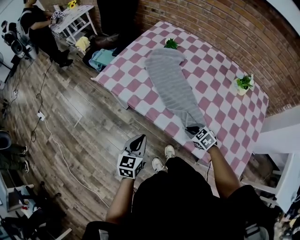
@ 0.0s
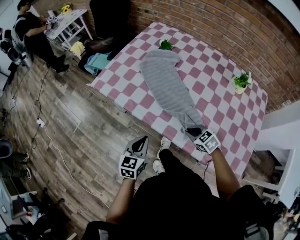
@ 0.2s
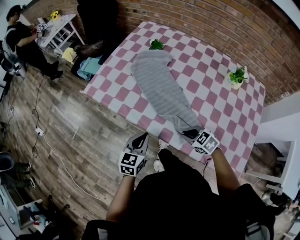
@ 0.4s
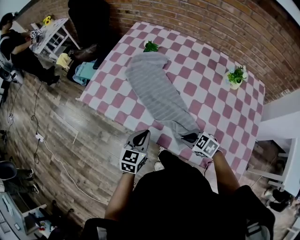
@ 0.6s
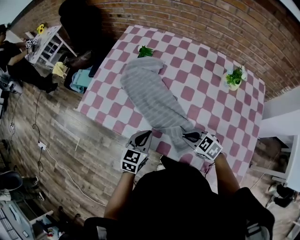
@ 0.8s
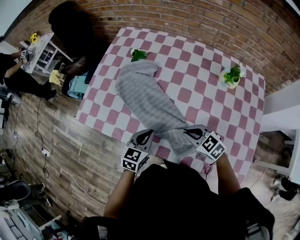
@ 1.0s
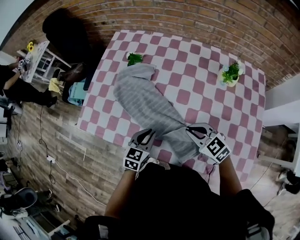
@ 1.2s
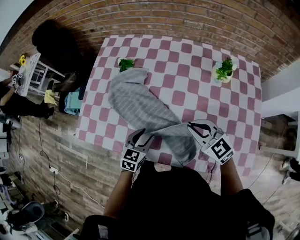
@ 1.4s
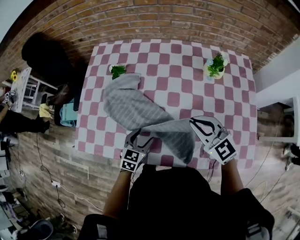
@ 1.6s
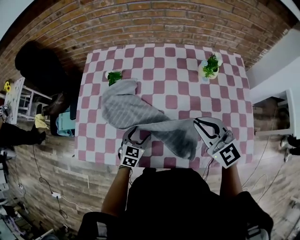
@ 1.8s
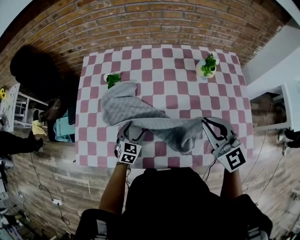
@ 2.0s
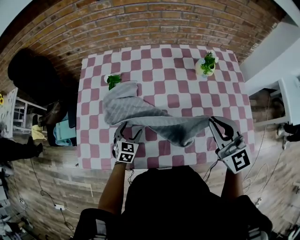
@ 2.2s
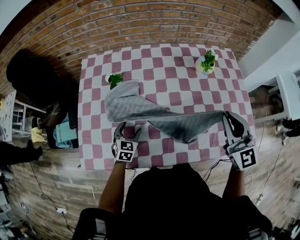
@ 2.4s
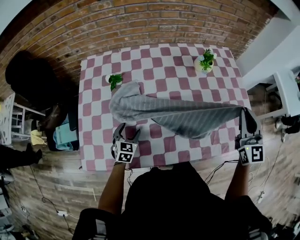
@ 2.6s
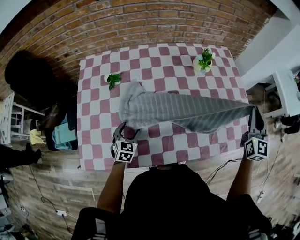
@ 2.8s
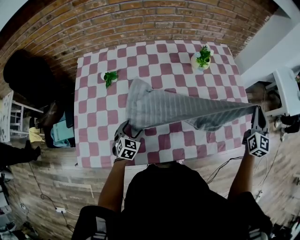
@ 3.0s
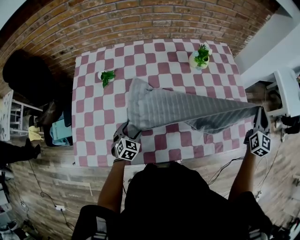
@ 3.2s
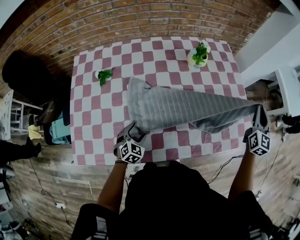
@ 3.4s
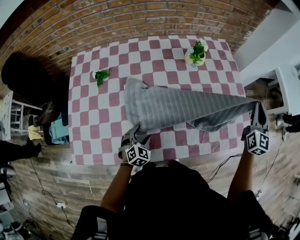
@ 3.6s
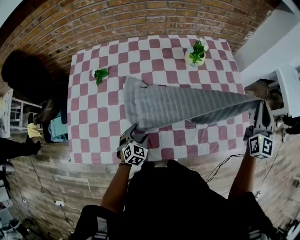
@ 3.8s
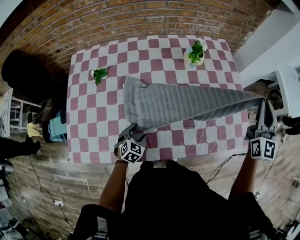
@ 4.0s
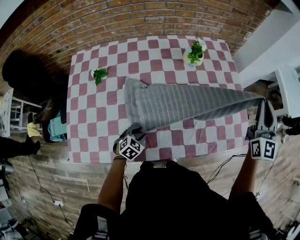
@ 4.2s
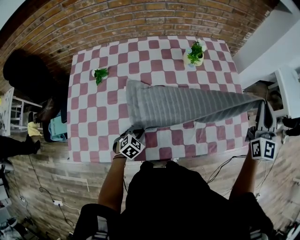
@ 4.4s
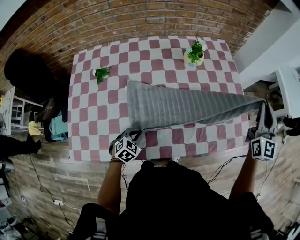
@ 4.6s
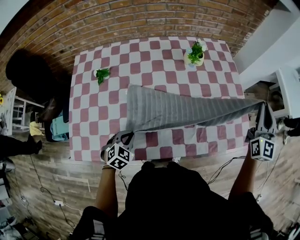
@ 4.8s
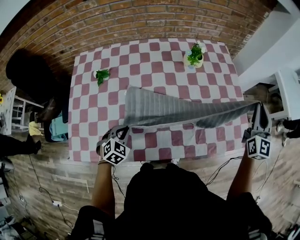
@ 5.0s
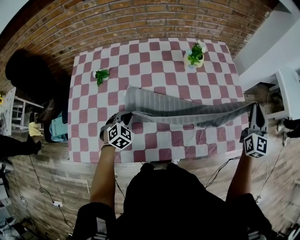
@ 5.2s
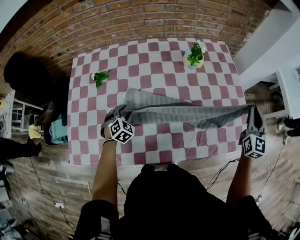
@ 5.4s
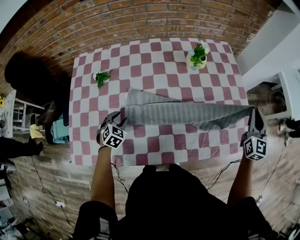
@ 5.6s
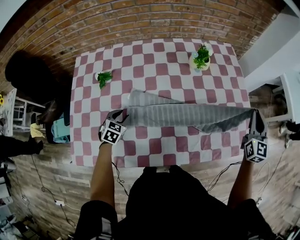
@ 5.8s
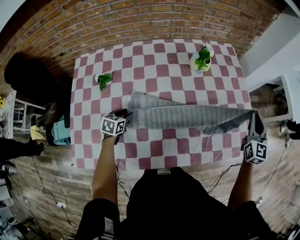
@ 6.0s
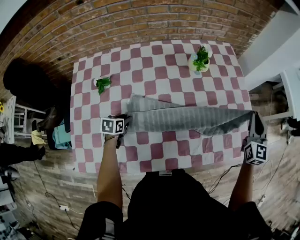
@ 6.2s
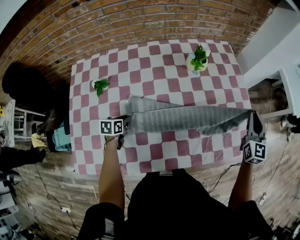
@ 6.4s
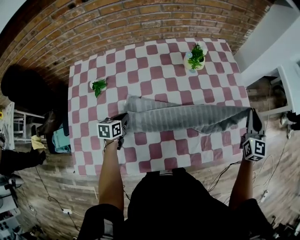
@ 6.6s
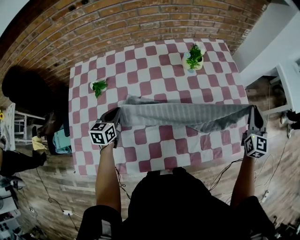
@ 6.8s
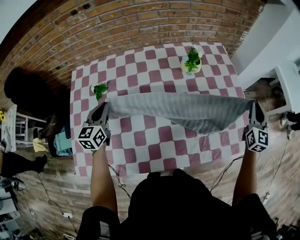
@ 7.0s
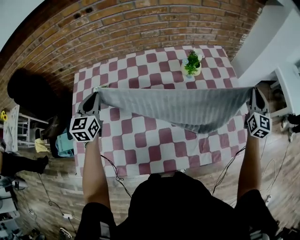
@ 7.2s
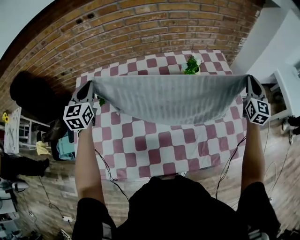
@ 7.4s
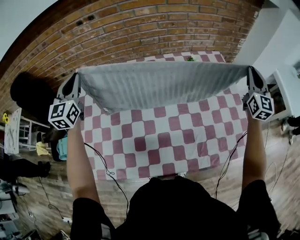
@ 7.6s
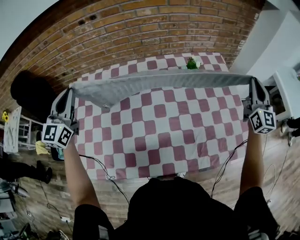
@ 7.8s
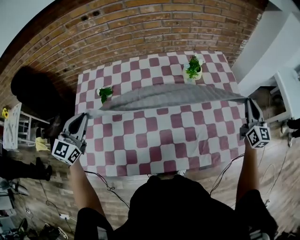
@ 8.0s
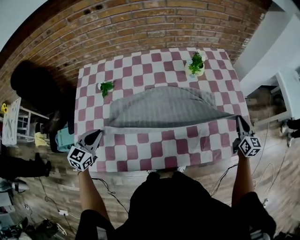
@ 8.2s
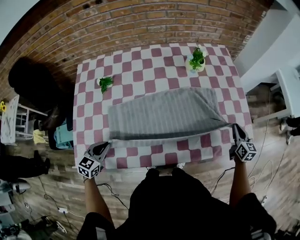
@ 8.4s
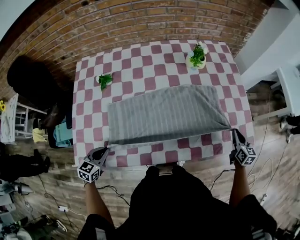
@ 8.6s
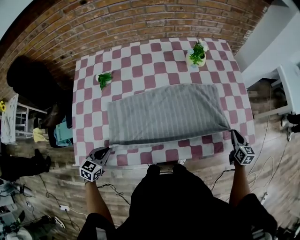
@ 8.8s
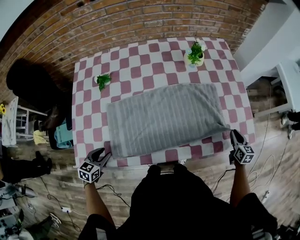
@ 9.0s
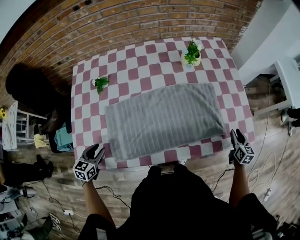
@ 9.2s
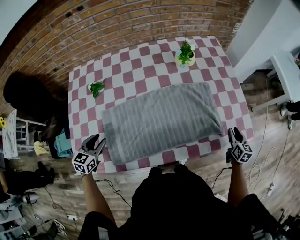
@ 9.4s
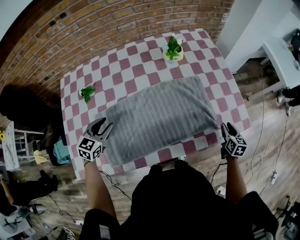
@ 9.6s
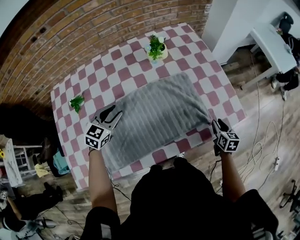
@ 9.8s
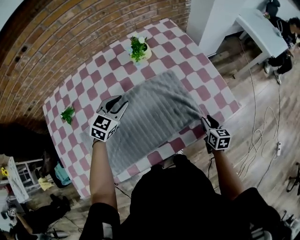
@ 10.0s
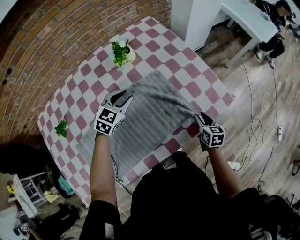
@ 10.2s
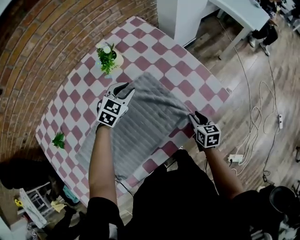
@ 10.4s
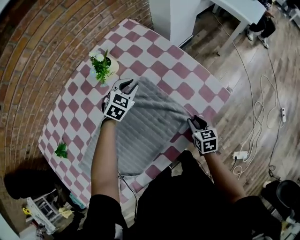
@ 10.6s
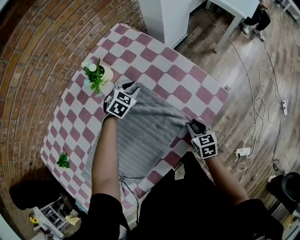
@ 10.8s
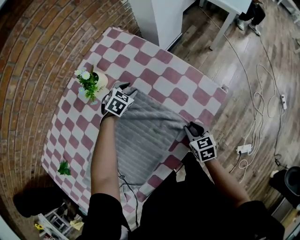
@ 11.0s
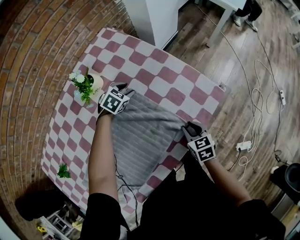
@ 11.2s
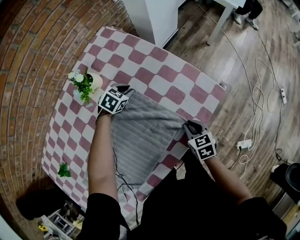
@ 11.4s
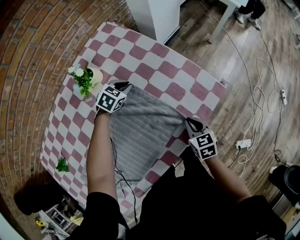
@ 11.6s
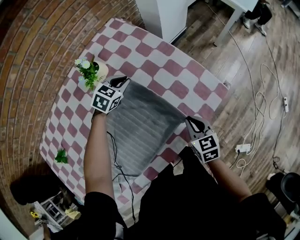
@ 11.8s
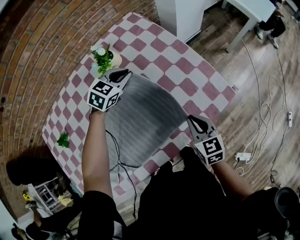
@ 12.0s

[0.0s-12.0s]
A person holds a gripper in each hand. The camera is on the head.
0.0s to 1.6s: The right gripper goes some 20 cm upward, and tips its fingers upward by some 40 degrees; the left gripper moves approximately 30 cm, swivels roughly 40 degrees, and opens up.
1.6s to 3.0s: The left gripper moves some 10 cm. The right gripper moves approximately 30 cm, and swivels roughly 70 degrees.
3.0s to 4.4s: The right gripper goes some 5 cm upward; the left gripper goes some 10 cm to the right, changes its angle by about 20 degrees, and closes its fingers.
4.4s to 6.0s: The right gripper goes roughly 10 cm downward; the left gripper shifts some 20 cm to the left and forward, changes its angle by about 30 degrees, and opens up.
6.0s to 7.6s: The left gripper travels upward by approximately 40 cm, tips its fingers upward by some 50 degrees, and closes up. The right gripper goes about 20 cm forward and upward.
7.6s to 9.0s: Both grippers move downward and backward, about 50 cm. The right gripper tilts its fingers roughly 40 degrees downward; the left gripper tilts its fingers about 40 degrees downward, and opens its fingers.
9.0s to 10.4s: The left gripper shifts by roughly 60 cm, and twists some 50 degrees clockwise, seen from behind, while the right gripper moves approximately 5 cm, turns by roughly 20 degrees, and opens its fingers.
10.4s to 12.0s: The left gripper is displaced forward by about 5 cm, and travels downward and back again, some 10 cm each way. The right gripper is displaced upward by roughly 10 cm, turns by about 20 degrees, and closes up.

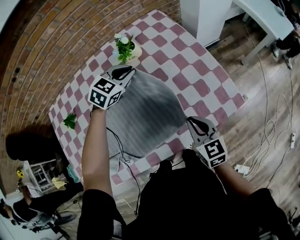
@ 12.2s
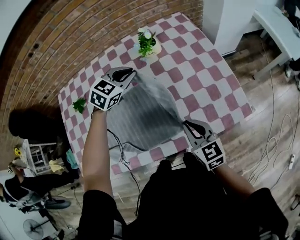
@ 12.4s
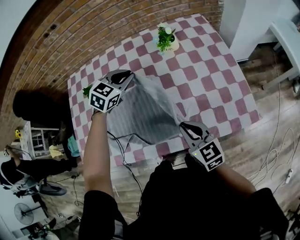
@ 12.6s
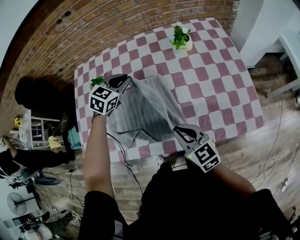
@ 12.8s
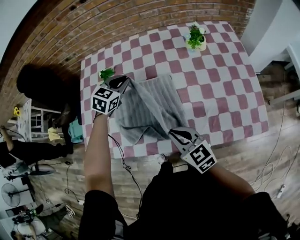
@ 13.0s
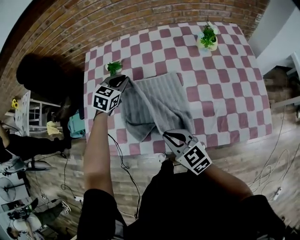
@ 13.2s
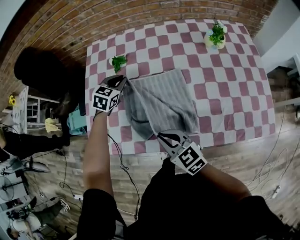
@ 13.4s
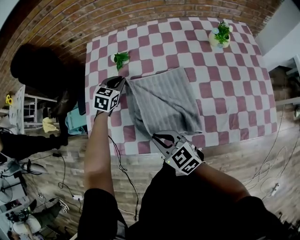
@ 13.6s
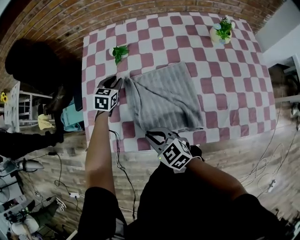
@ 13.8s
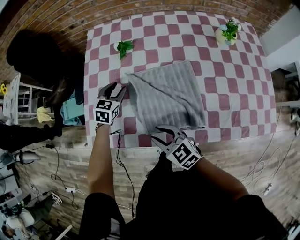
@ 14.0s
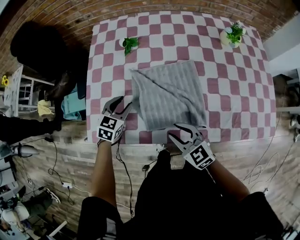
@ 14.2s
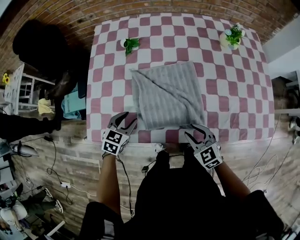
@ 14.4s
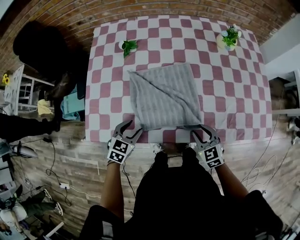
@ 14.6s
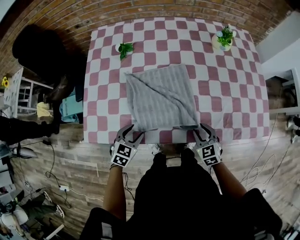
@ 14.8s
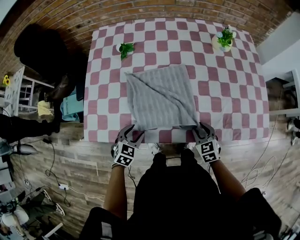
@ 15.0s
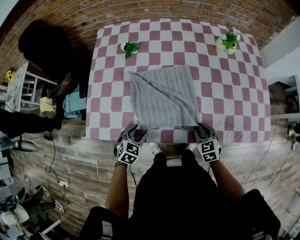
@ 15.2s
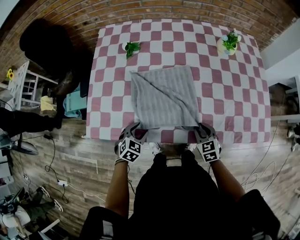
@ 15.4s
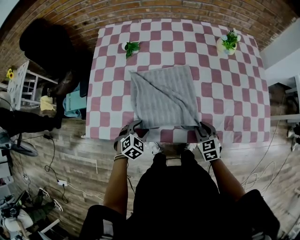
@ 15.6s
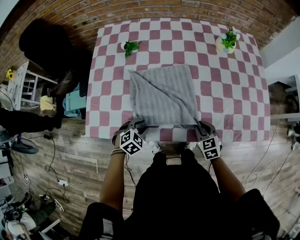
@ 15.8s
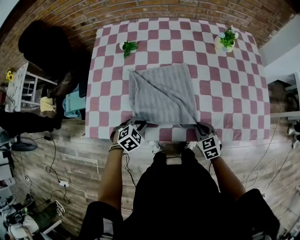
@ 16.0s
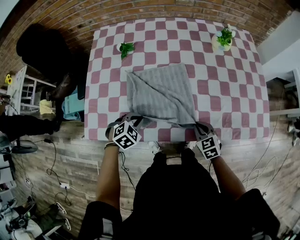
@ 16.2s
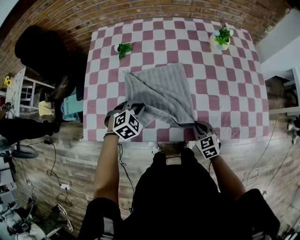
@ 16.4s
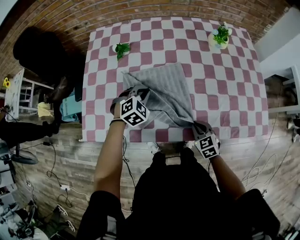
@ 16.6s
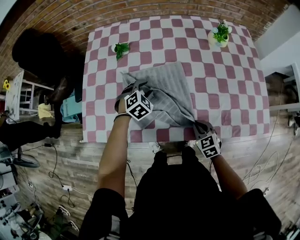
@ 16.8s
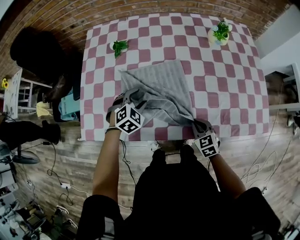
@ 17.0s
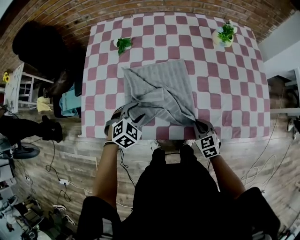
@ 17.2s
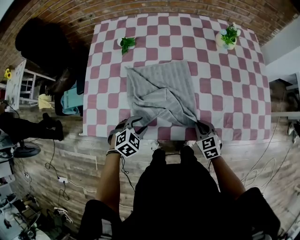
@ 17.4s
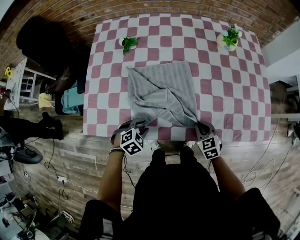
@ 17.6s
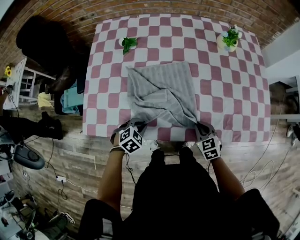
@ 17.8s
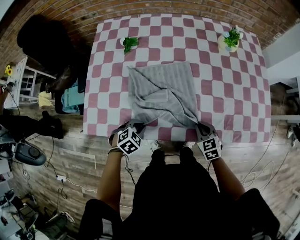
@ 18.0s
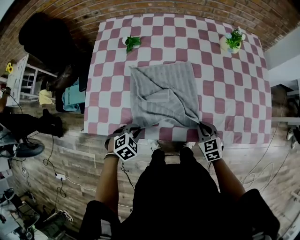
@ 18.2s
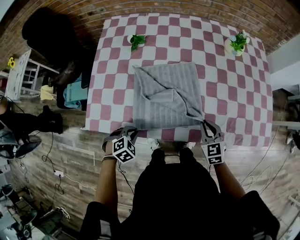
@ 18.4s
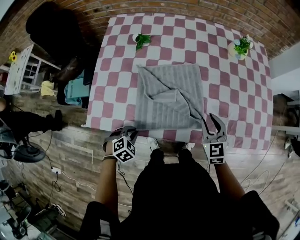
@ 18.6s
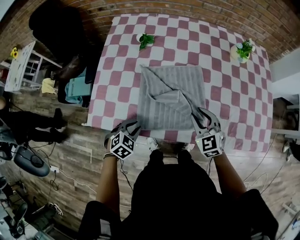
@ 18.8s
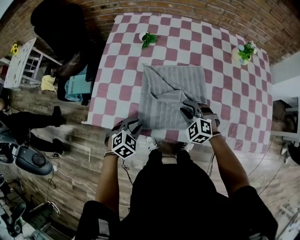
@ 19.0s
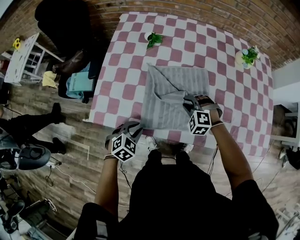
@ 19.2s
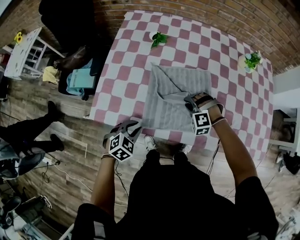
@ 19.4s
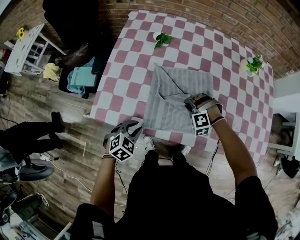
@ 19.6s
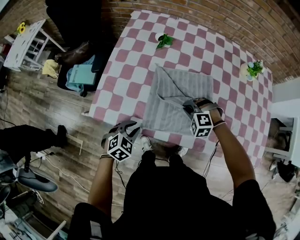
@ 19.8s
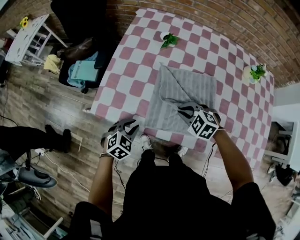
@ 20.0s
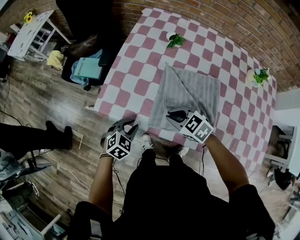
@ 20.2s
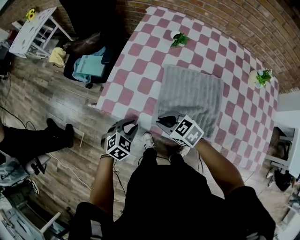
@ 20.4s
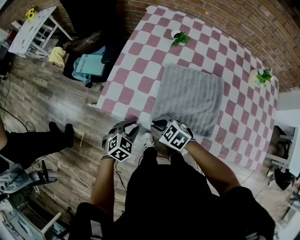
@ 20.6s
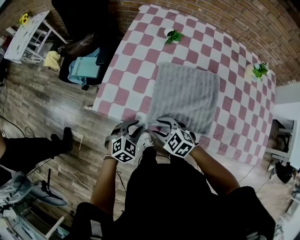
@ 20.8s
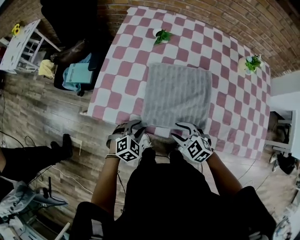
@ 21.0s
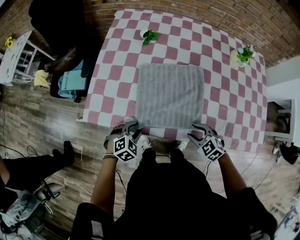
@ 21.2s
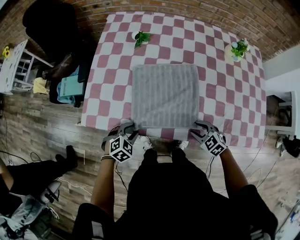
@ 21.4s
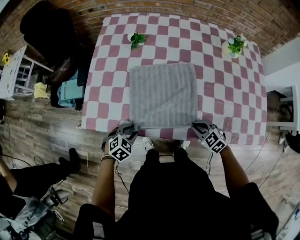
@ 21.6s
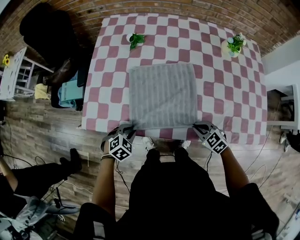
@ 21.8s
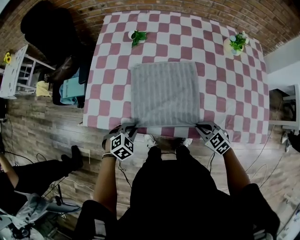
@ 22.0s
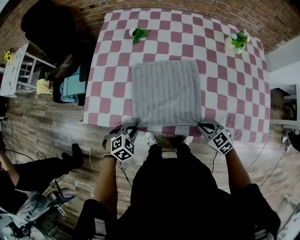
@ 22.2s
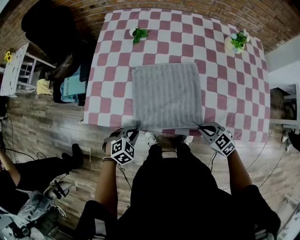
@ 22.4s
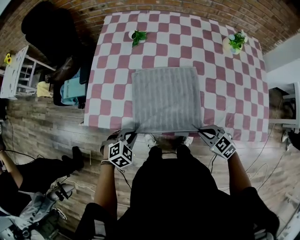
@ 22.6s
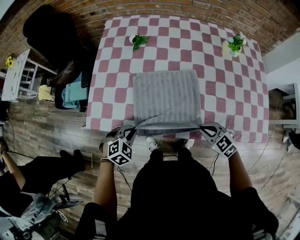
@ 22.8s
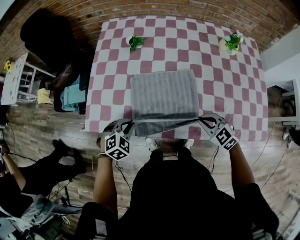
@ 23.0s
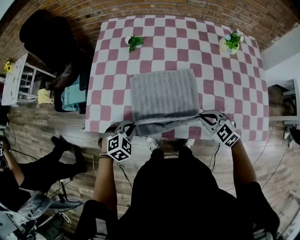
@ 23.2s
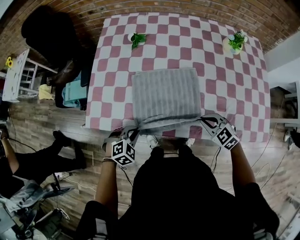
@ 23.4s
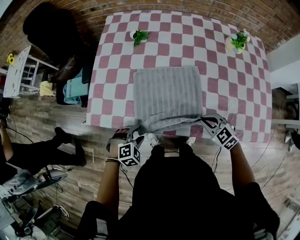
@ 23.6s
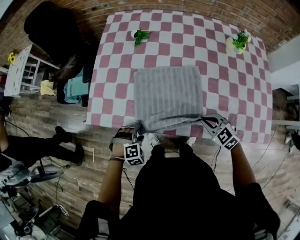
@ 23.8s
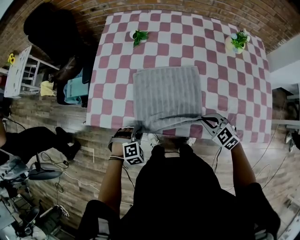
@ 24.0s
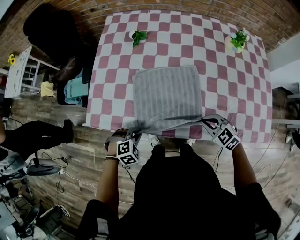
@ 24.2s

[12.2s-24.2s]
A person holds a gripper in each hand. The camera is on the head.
12.2s to 13.8s: The pair of grippers is taken roughly 50 cm. The right gripper turns by some 50 degrees; the left gripper changes its angle by about 50 degrees.
13.8s to 15.2s: The right gripper moves to the right, roughly 25 cm, and swivels roughly 30 degrees. Meanwhile the left gripper shifts some 30 cm backward.
15.2s to 16.6s: The right gripper closes. The left gripper heads forward and upward, covering some 20 cm, turns by about 30 degrees, and closes its fingers.
16.6s to 18.2s: The left gripper goes roughly 20 cm backward, turns by about 20 degrees, and opens, then closes once more.
18.2s to 19.8s: The left gripper is displaced to the left by about 5 cm, and swivels roughly 20 degrees. The right gripper shifts about 20 cm to the left and forward, and twists some 70 degrees counterclockwise, seen from behind.
19.8s to 21.2s: The right gripper shifts by approximately 15 cm, twists some 50 degrees clockwise, seen from behind, and opens up.
21.2s to 22.6s: The right gripper moves approximately 5 cm, and closes, while the left gripper closes up.
22.6s to 24.2s: The left gripper opens, then closes once more.
